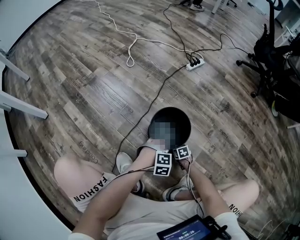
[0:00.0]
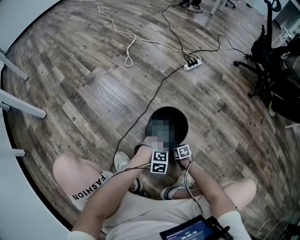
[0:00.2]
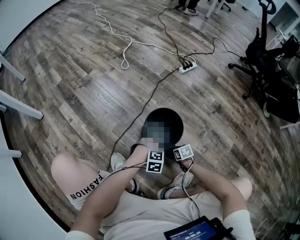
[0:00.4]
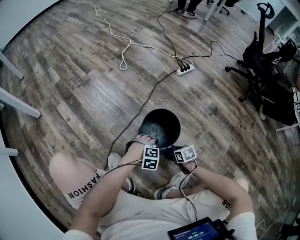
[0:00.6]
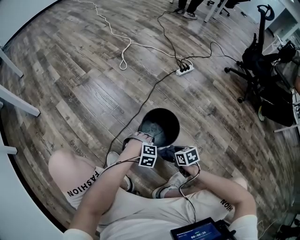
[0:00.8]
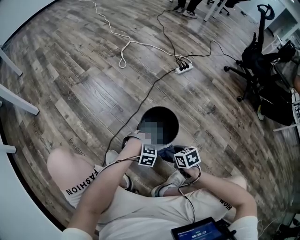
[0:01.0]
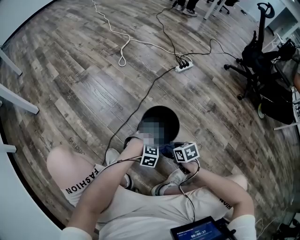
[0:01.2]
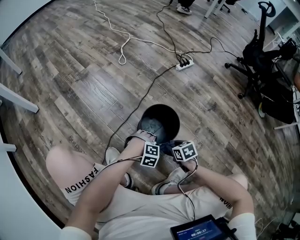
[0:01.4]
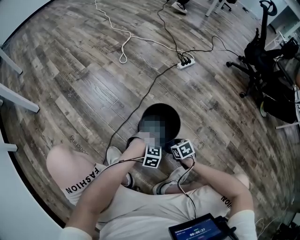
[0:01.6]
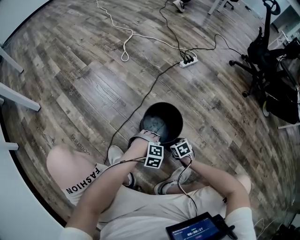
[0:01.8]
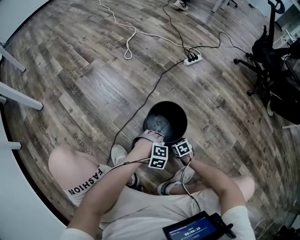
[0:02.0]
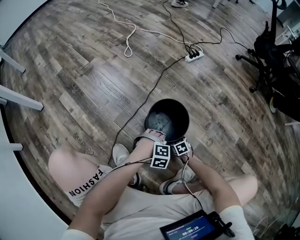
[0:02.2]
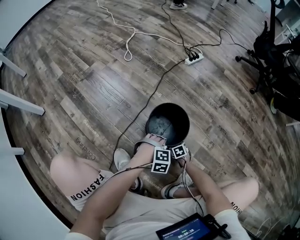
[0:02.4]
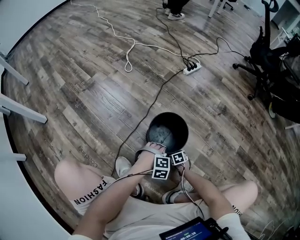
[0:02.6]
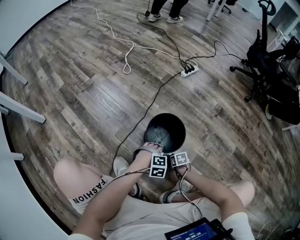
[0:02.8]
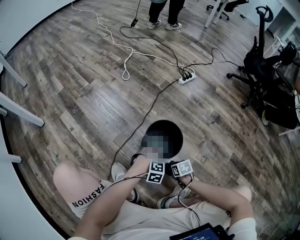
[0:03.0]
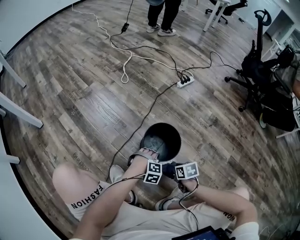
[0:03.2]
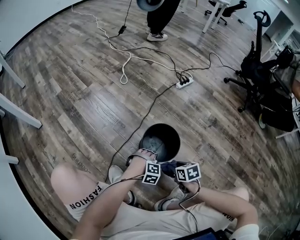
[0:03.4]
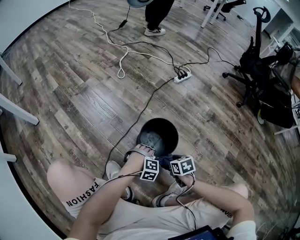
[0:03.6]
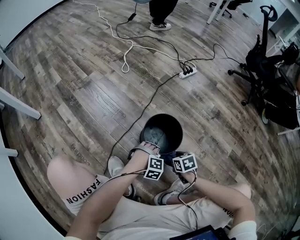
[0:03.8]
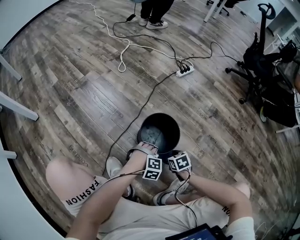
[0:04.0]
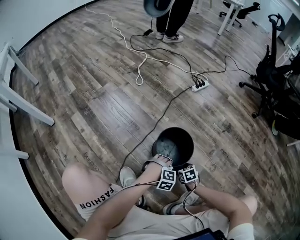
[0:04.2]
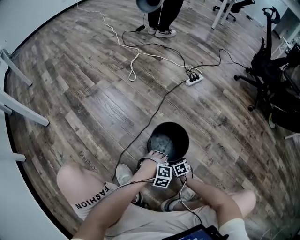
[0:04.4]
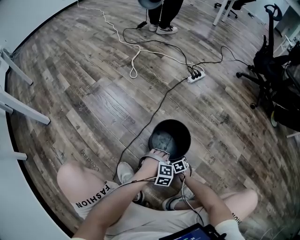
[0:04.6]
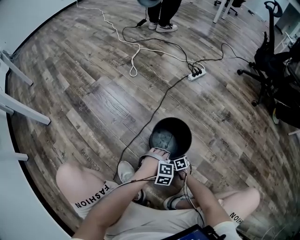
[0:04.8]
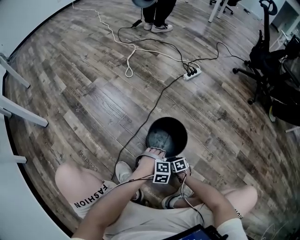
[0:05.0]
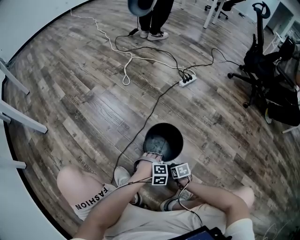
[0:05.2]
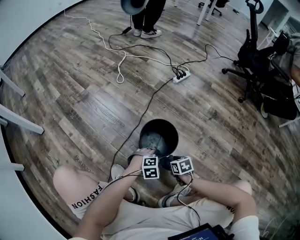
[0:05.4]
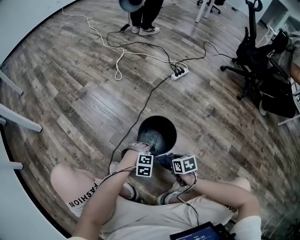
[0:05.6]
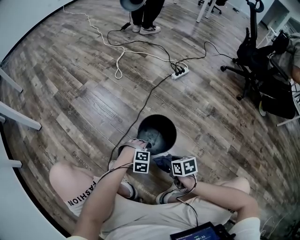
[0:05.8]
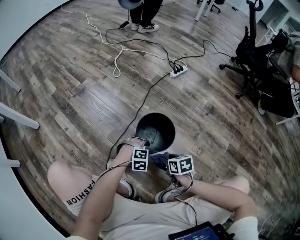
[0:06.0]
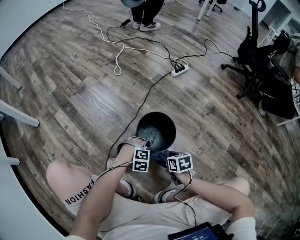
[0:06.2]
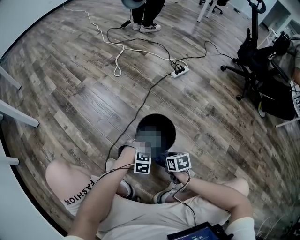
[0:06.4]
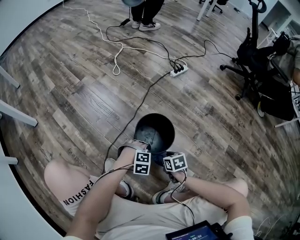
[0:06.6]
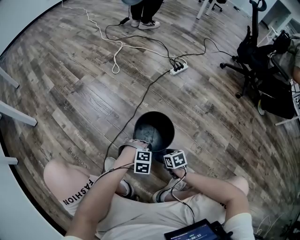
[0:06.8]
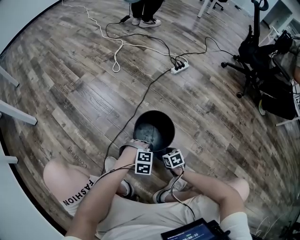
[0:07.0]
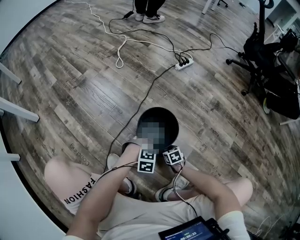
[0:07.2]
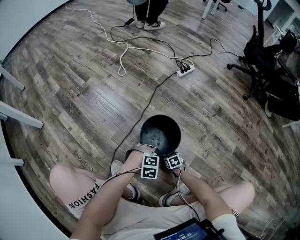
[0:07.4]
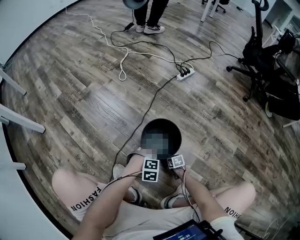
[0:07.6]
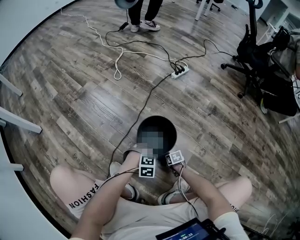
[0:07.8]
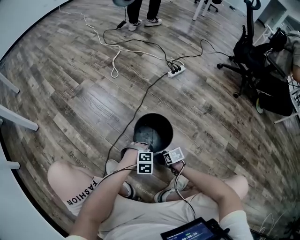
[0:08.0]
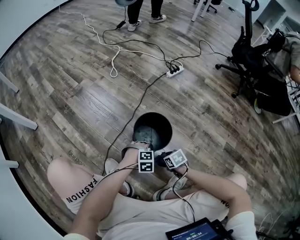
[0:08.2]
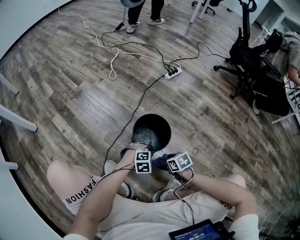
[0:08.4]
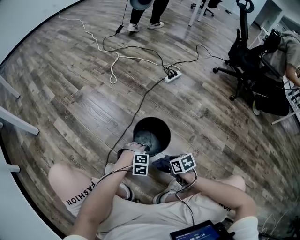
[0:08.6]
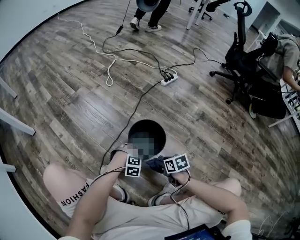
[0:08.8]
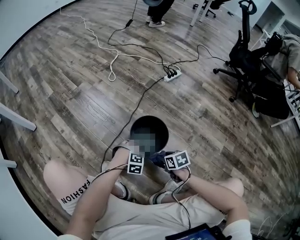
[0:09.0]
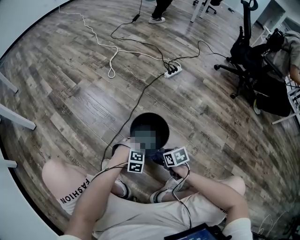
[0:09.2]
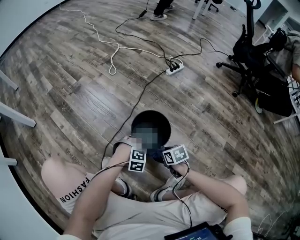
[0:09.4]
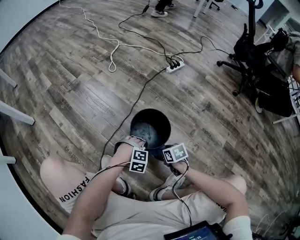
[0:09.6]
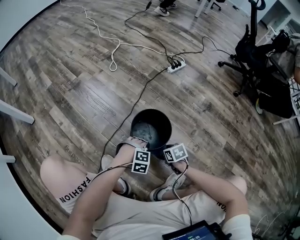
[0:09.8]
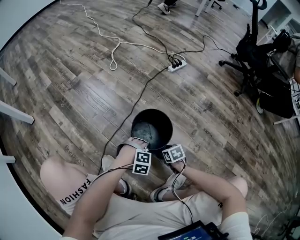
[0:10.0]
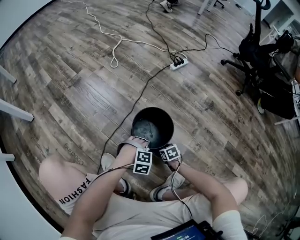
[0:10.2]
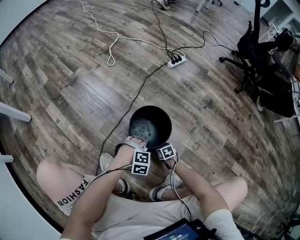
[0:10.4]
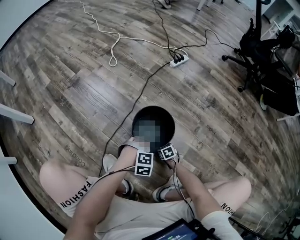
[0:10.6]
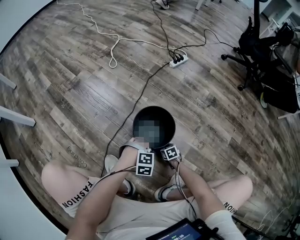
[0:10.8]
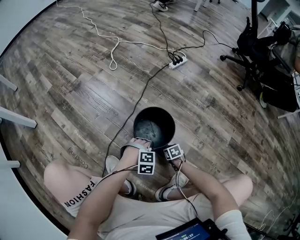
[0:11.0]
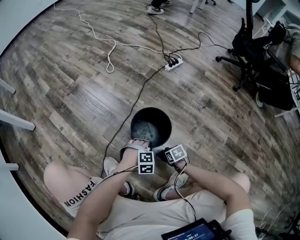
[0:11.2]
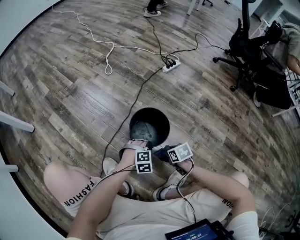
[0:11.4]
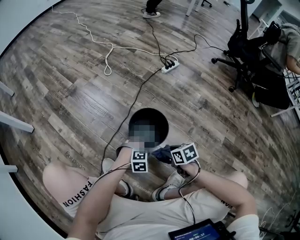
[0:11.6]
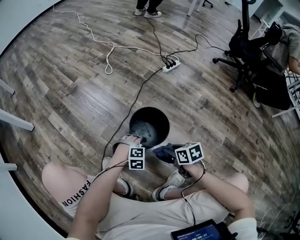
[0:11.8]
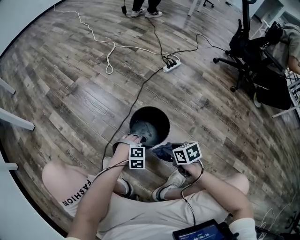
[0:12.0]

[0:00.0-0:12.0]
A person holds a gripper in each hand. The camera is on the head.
0:00.0 to 0:01.6: The right gripper heads upward, covering some 20 cm. Meanwhile the left gripper opens, then closes once more.
0:01.6 to 0:03.0: The left gripper opens up, while the right gripper moves approximately 20 cm downward and comes back.
0:03.0 to 0:04.4: The right gripper heads downward and forward, covering approximately 10 cm; the left gripper closes.
0:04.4 to 0:06.0: The right gripper moves upward, some 20 cm, and turns by roughly 30 degrees.
0:06.0 to 0:07.6: The right gripper goes about 25 cm downward. Meanwhile the left gripper closes its fingers.
0:07.6 to 0:09.0: The right gripper travels upward by some 25 cm.
0:09.0 to 0:10.4: The right gripper heads downward, covering about 20 cm.
0:10.4 to 0:12.0: The right gripper goes about 25 cm upward.

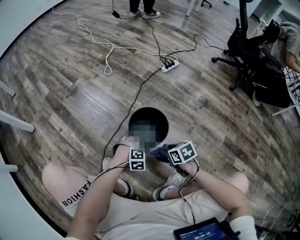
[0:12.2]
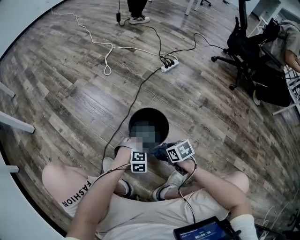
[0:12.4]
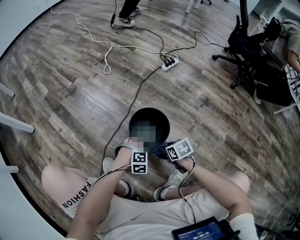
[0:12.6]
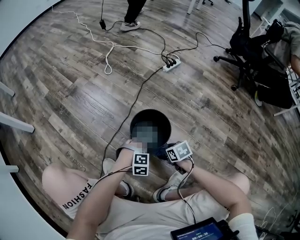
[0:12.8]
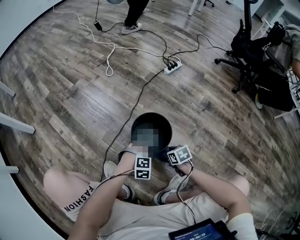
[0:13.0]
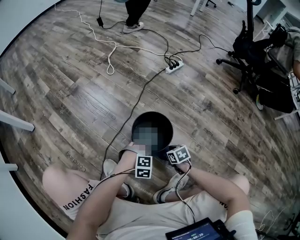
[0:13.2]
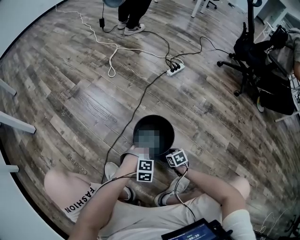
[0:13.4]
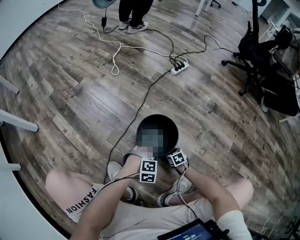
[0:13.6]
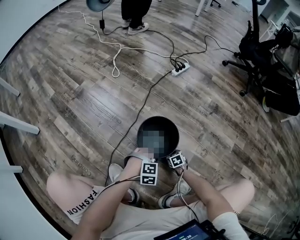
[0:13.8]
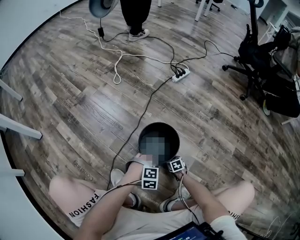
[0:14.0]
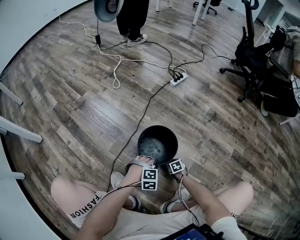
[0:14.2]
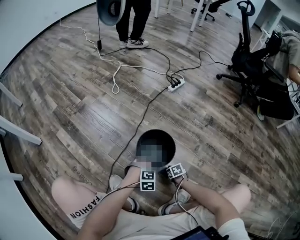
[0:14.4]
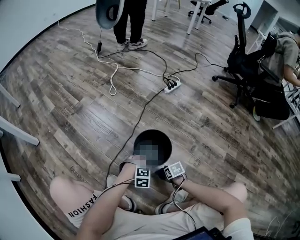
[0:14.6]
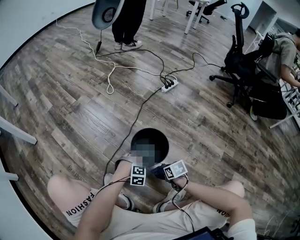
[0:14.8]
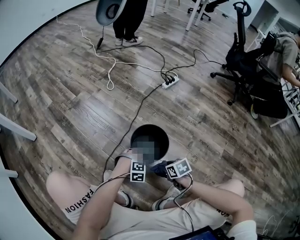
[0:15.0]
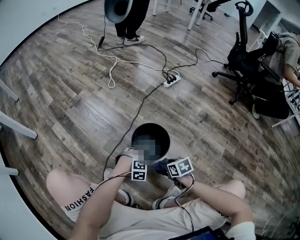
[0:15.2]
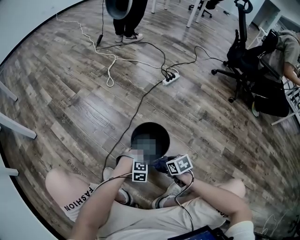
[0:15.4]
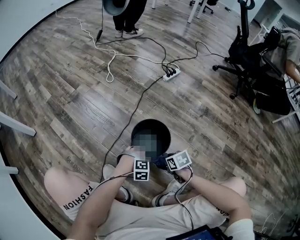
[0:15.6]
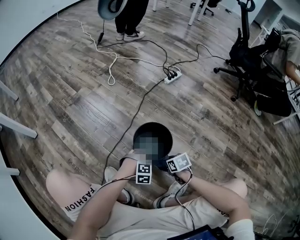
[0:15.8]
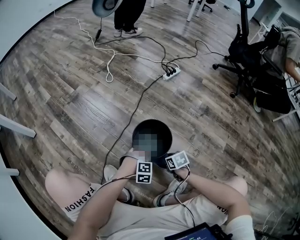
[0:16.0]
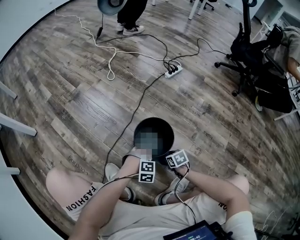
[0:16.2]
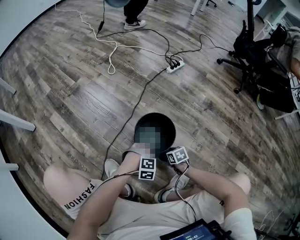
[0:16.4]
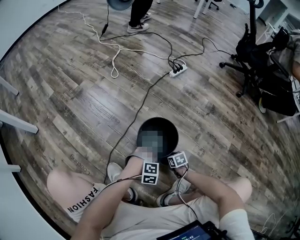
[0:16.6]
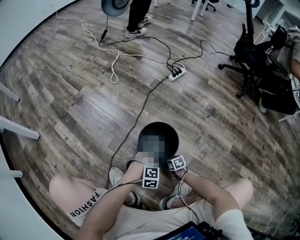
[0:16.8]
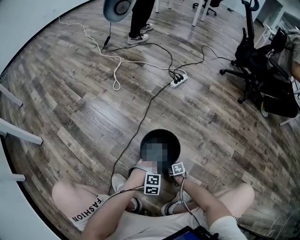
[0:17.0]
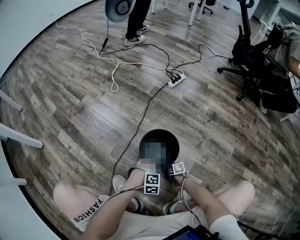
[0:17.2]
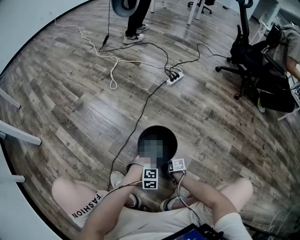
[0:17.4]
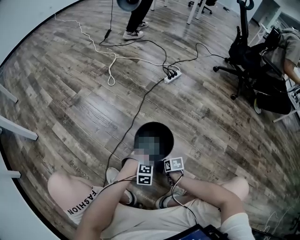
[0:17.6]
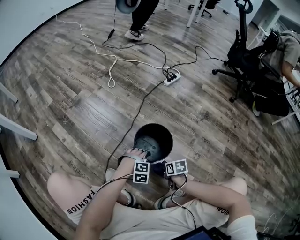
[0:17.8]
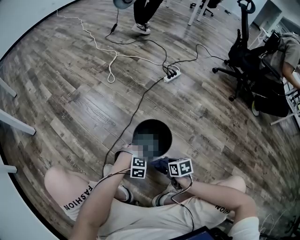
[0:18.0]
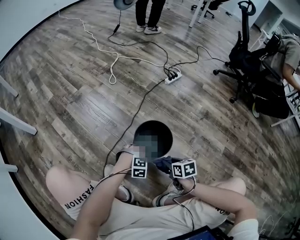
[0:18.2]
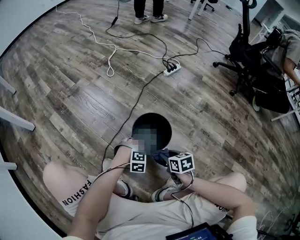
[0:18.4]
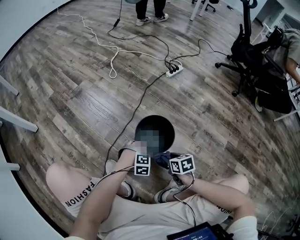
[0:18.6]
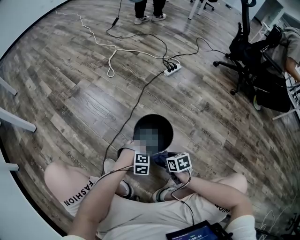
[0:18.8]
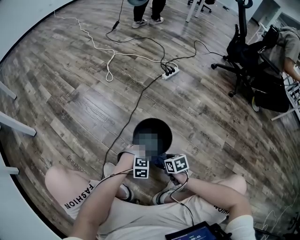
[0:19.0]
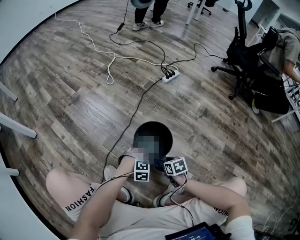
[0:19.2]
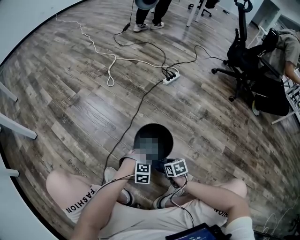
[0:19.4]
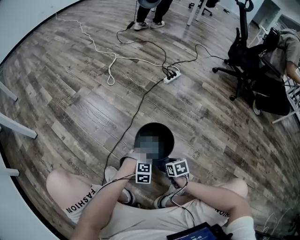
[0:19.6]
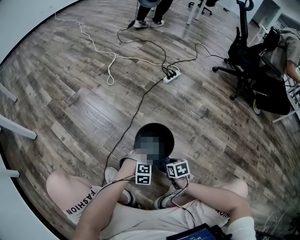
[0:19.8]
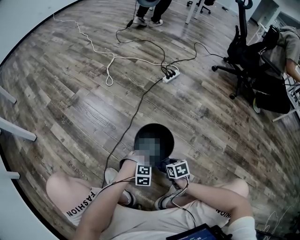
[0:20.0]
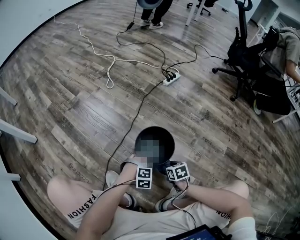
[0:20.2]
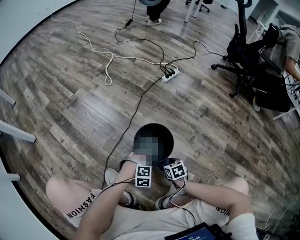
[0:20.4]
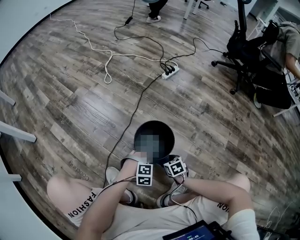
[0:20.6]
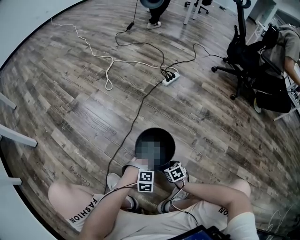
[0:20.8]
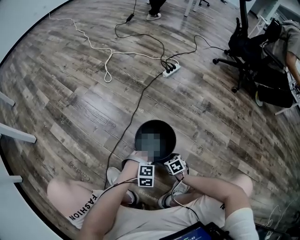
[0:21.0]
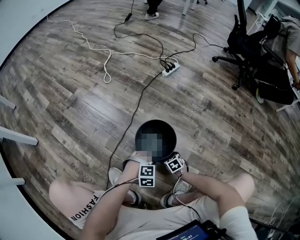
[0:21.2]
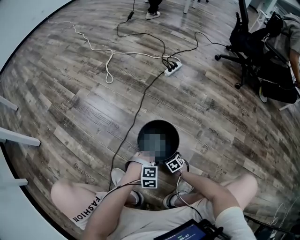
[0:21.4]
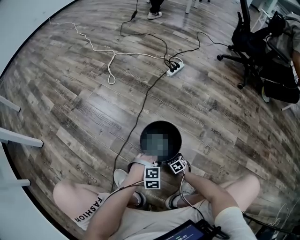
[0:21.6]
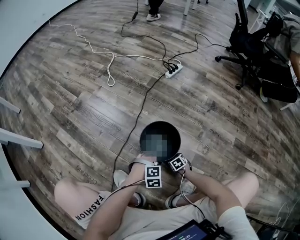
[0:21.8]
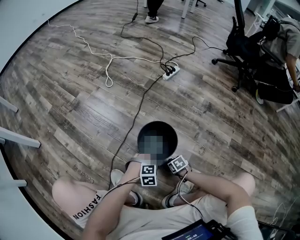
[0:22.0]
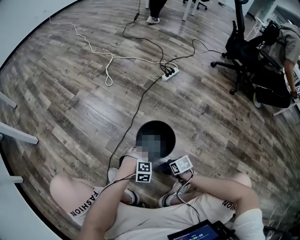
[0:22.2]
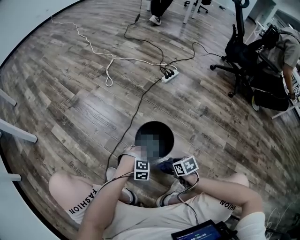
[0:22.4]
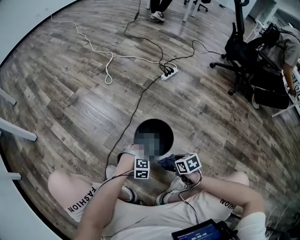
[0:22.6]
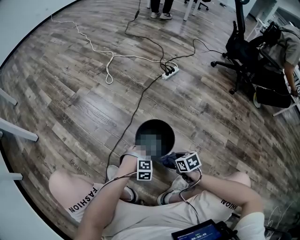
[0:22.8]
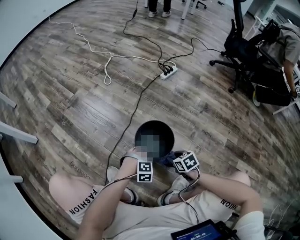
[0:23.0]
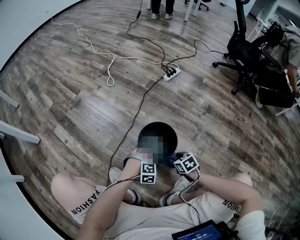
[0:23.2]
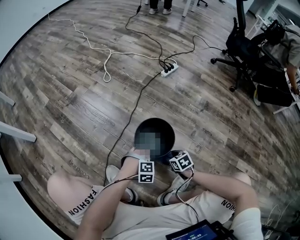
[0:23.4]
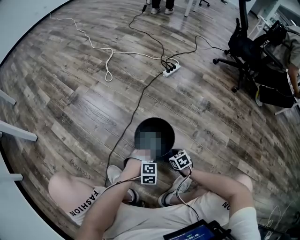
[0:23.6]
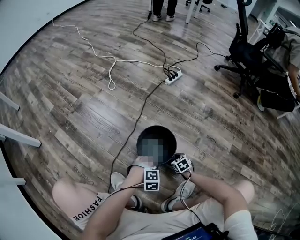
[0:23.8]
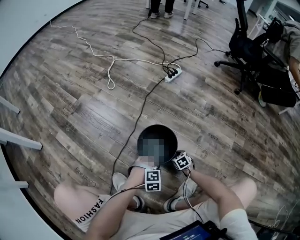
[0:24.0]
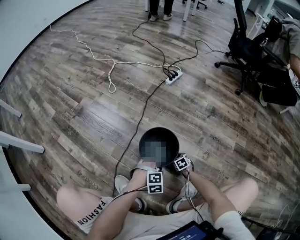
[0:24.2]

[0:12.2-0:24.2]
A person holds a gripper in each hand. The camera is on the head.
0:12.2 to 0:13.8: The right gripper shifts roughly 25 cm downward.
0:13.8 to 0:15.2: The right gripper goes some 25 cm upward. Meanwhile the left gripper opens its fingers.
0:15.2 to 0:16.6: The right gripper goes some 15 cm downward.
0:16.6 to 0:18.2: The right gripper moves upward, about 20 cm. Meanwhile the left gripper opens its fingers.
0:18.2 to 0:19.8: The right gripper shifts about 5 cm downward.
0:19.8 to 0:21.2: The right gripper moves downward, roughly 15 cm.
0:21.2 to 0:22.6: The right gripper goes roughly 15 cm upward, and rotates some 20 degrees. Meanwhile the left gripper opens its fingers.
0:22.6 to 0:24.2: The left gripper closes up. Meanwhile the right gripper is displaced downward by approximately 20 cm.
